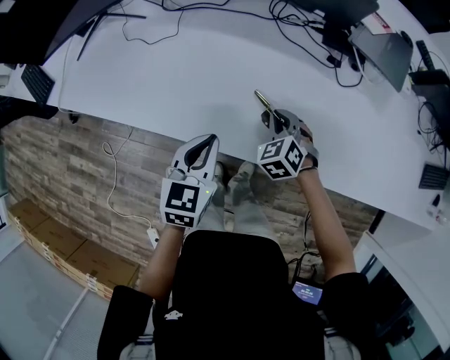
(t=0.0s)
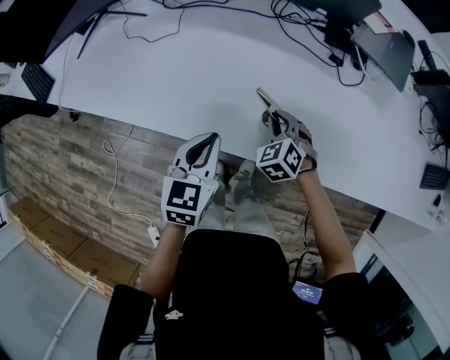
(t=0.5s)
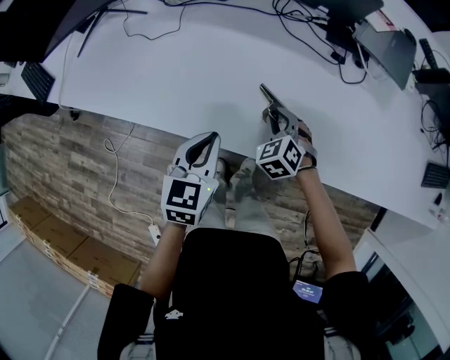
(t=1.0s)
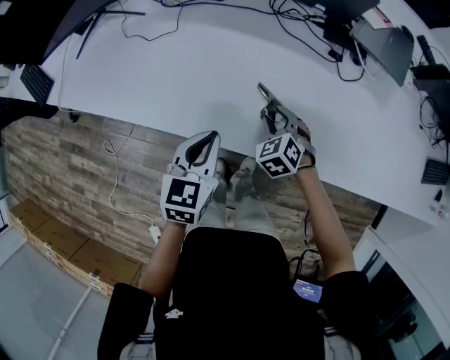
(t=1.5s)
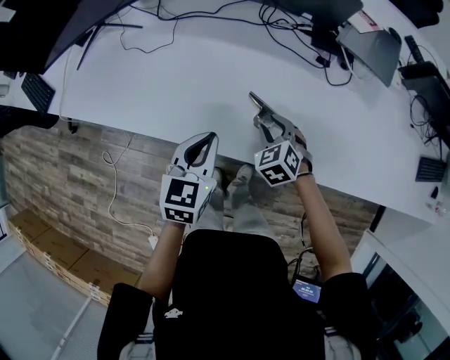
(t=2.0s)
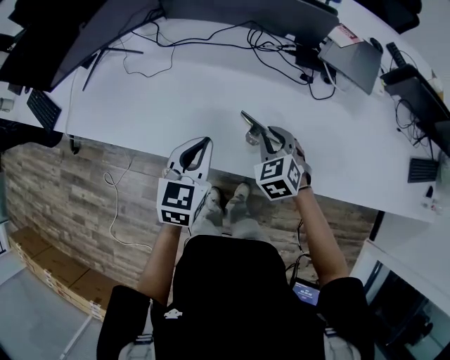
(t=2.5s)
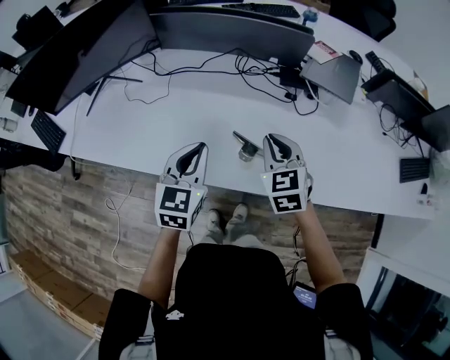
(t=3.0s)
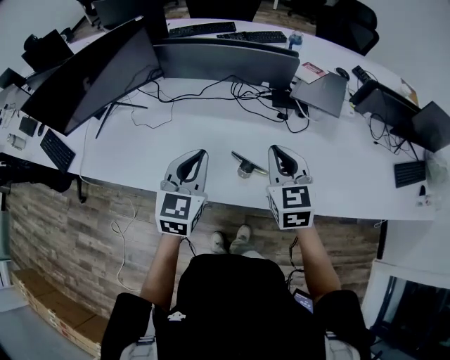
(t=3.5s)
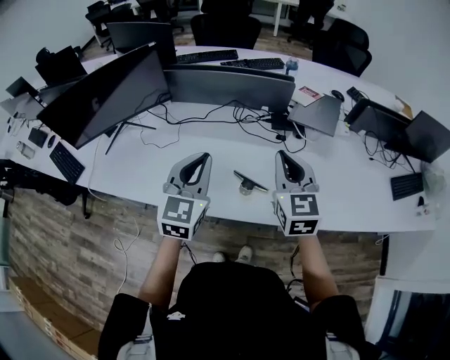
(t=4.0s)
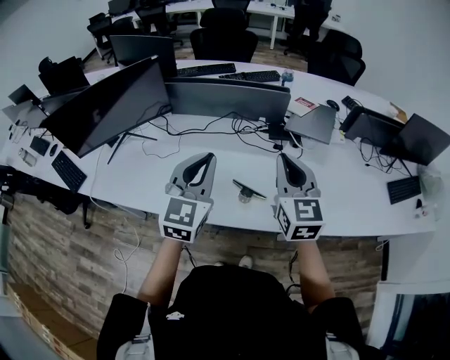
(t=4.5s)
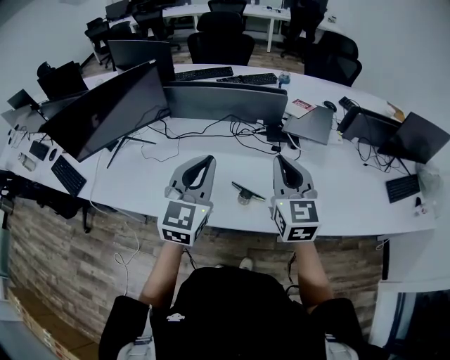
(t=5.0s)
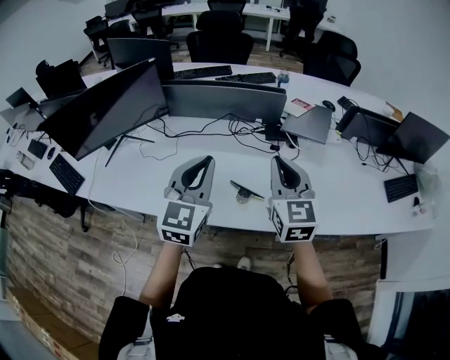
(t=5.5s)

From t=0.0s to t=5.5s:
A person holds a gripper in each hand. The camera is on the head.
From t=0.0s to t=2.0s: The right gripper opens.
From t=2.0s to t=3.5s: The right gripper goes approximately 30 cm upward, tilts its fingers roughly 30 degrees upward, and closes its fingers, while the left gripper shifts about 20 cm upward.
From t=3.5s to t=5.5s: The grippers both shift upward by about 10 cm.

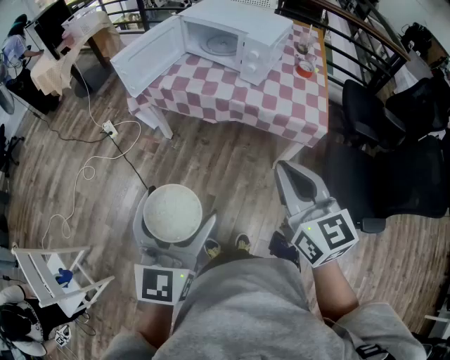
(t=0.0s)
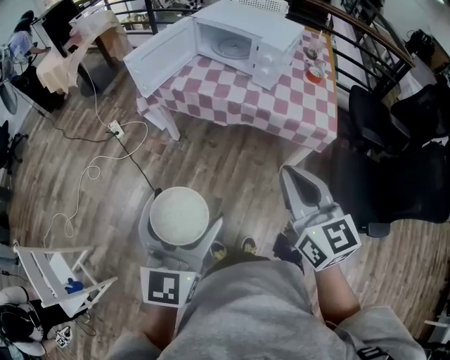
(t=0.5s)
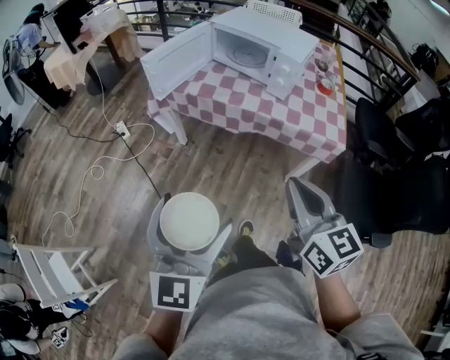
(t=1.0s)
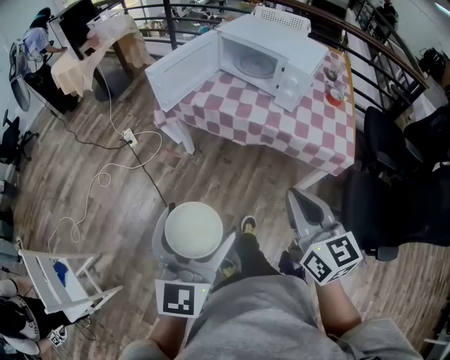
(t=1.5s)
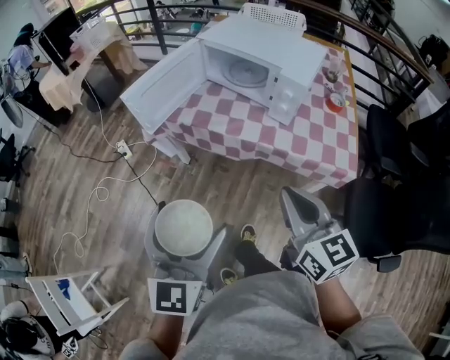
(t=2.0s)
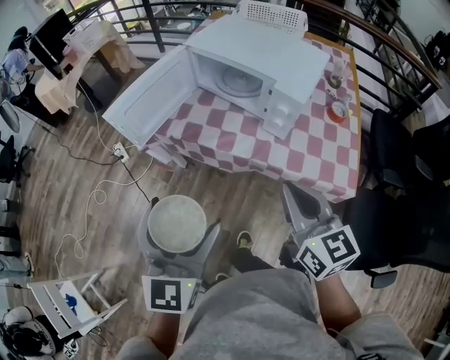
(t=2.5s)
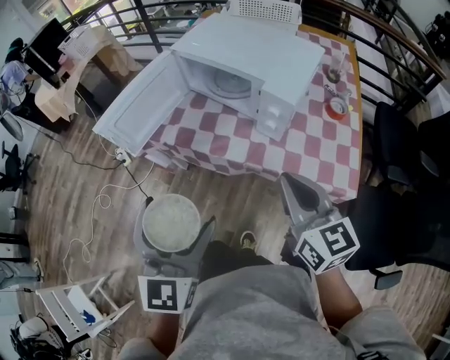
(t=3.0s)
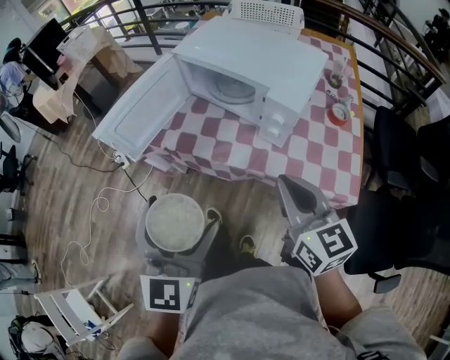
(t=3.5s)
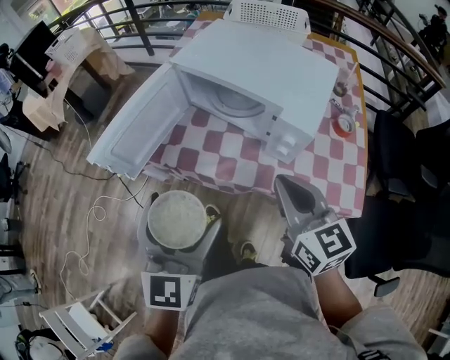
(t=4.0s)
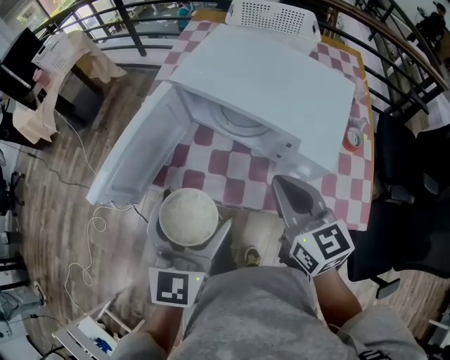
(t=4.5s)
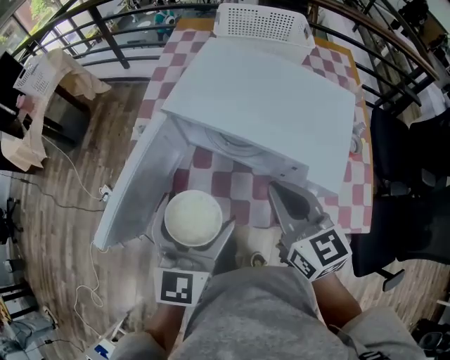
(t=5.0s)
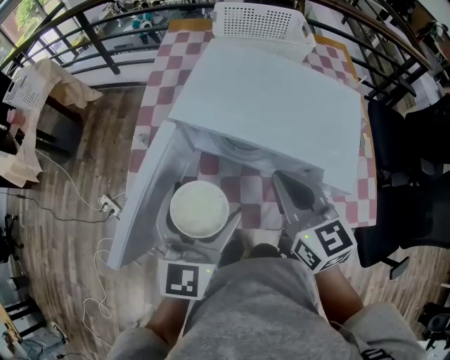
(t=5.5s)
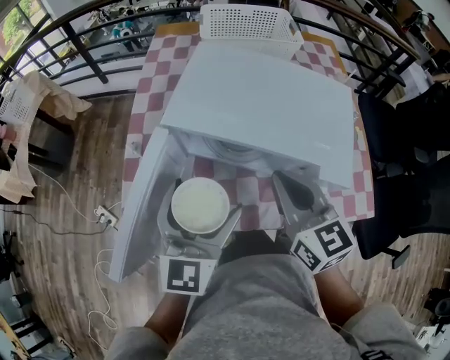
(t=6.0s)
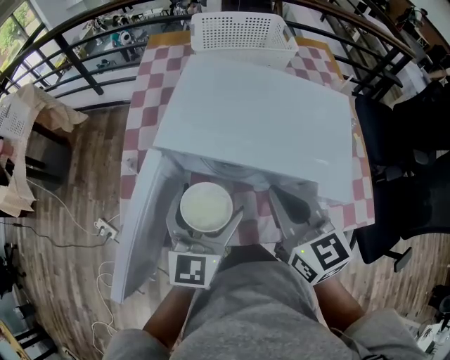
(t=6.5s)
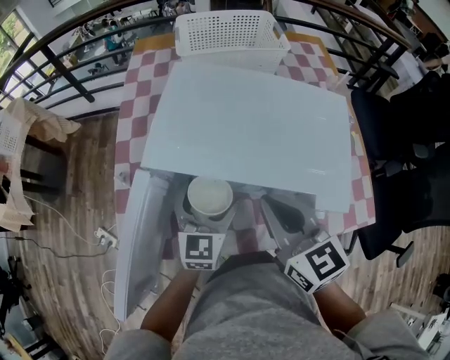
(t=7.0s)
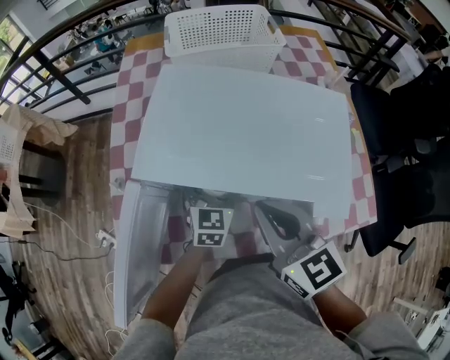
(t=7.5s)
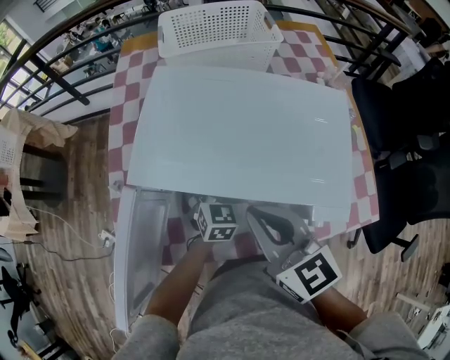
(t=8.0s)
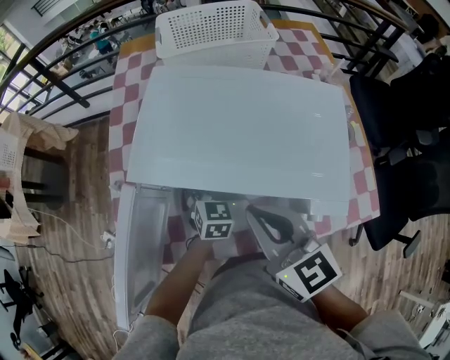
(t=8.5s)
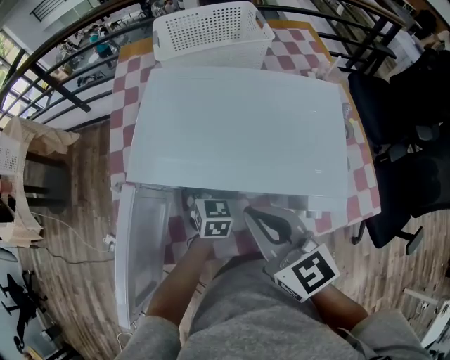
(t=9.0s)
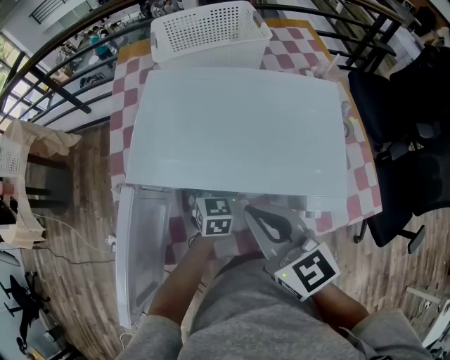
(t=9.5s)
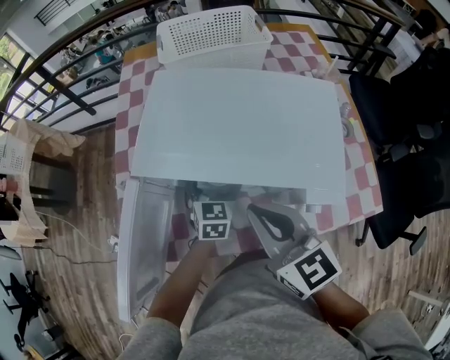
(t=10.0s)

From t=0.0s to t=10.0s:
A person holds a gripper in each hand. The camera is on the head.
From t=0.0s to t=2.0s: Both grippers move forward, roughly 15 cm.
From t=2.0s to t=4.0s: The grippers both shift forward by about 25 cm.
From t=4.0s to t=6.0s: The right gripper heads forward and to the left, covering about 20 cm, while the left gripper heads forward, covering some 25 cm, and rotates some 20 degrees.
From t=6.0s to t=8.0s: The left gripper is displaced downward, forward and to the right by approximately 25 cm, and turns by about 30 degrees.
From t=8.0s to t=10.0s: The grippers make only small movements.

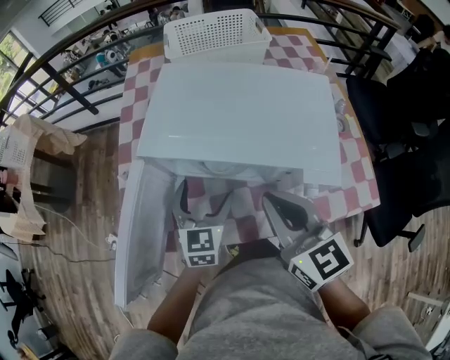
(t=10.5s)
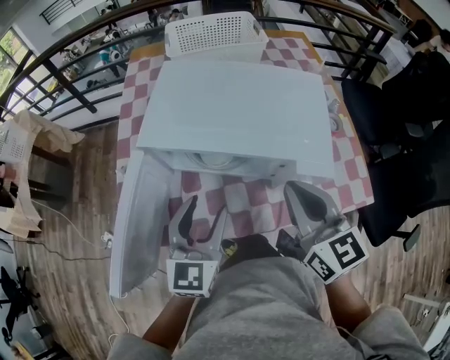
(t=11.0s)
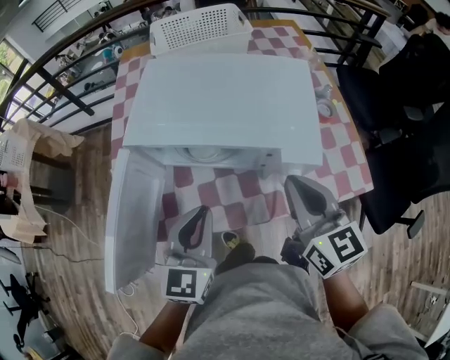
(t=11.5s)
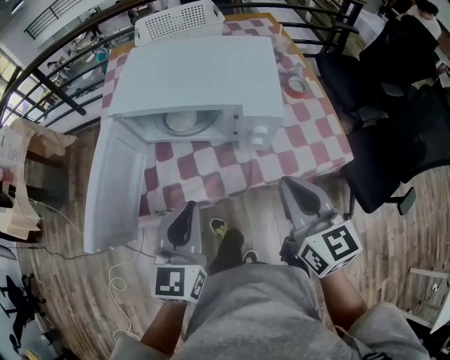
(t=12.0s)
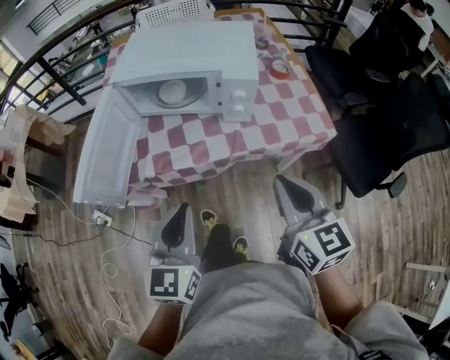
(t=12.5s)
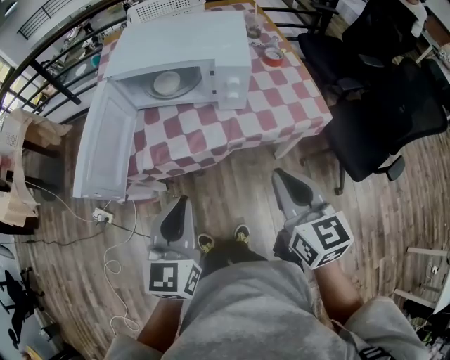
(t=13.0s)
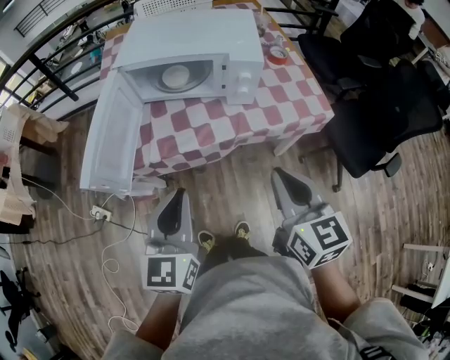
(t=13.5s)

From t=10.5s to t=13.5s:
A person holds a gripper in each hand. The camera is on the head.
From t=10.5s to t=12.0s: The right gripper is displaced backward and to the right by approximately 20 cm, while the left gripper is displaced backward and upward by about 25 cm, and closes its fingers.
From t=12.0s to t=13.5s: Both grippers travel together backward, approximately 15 cm.

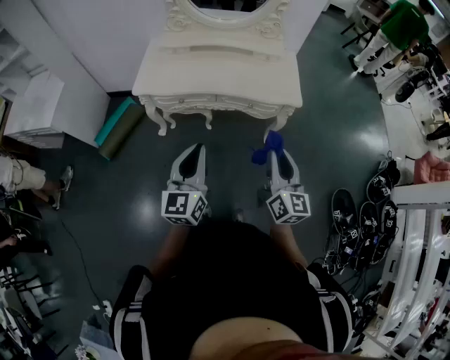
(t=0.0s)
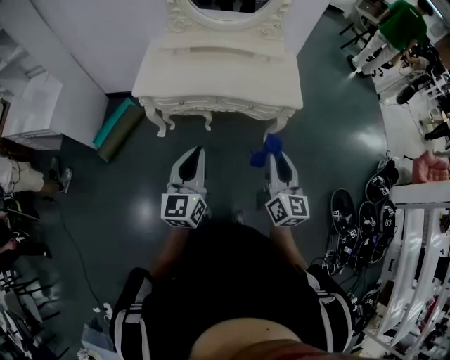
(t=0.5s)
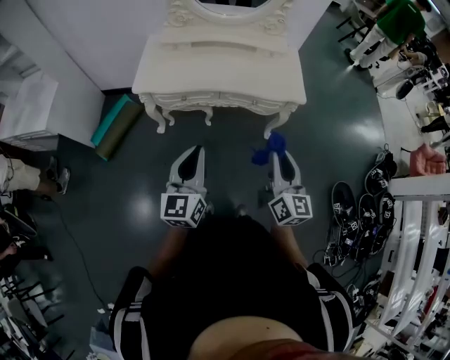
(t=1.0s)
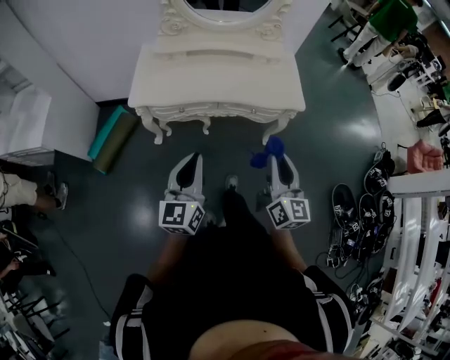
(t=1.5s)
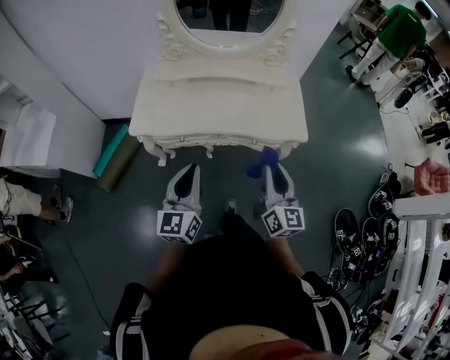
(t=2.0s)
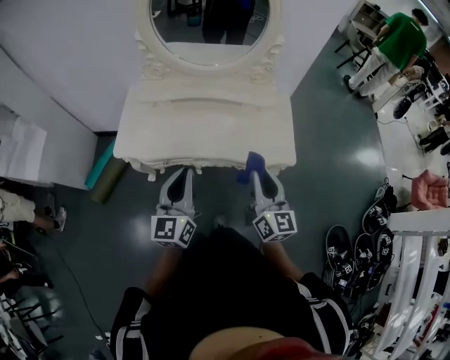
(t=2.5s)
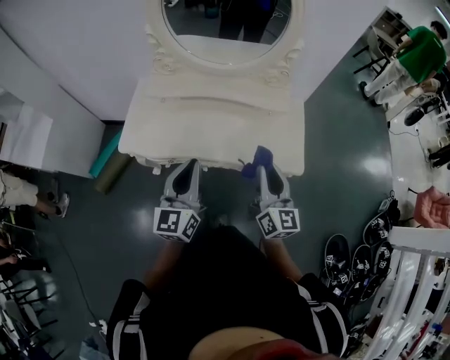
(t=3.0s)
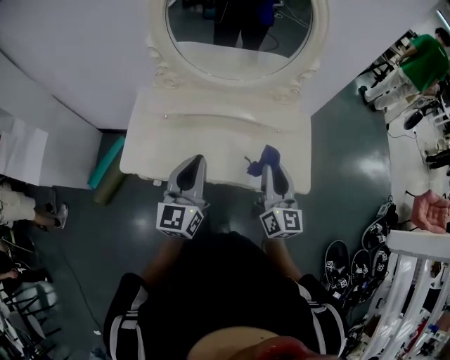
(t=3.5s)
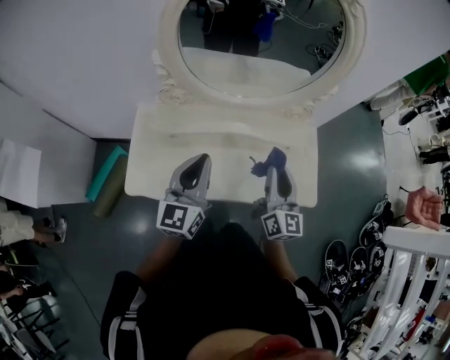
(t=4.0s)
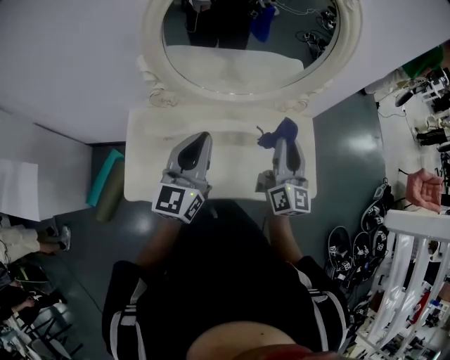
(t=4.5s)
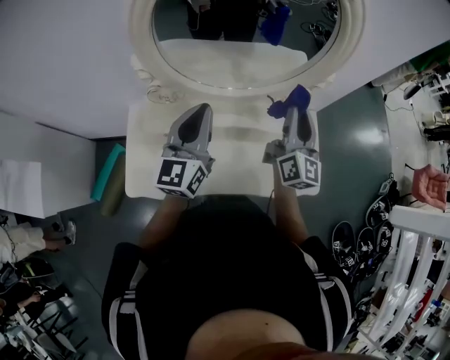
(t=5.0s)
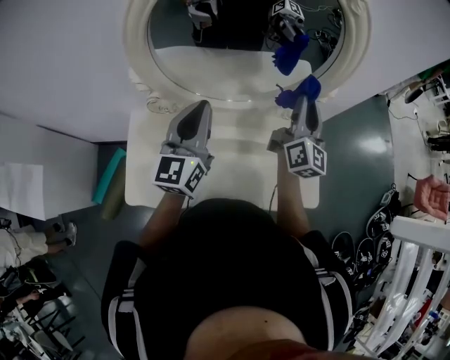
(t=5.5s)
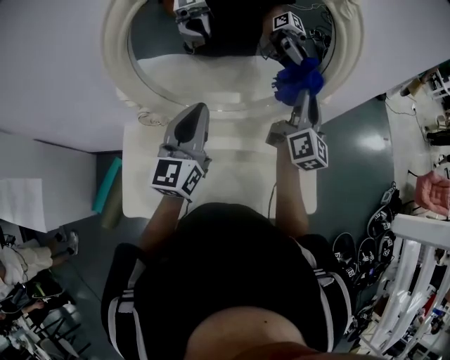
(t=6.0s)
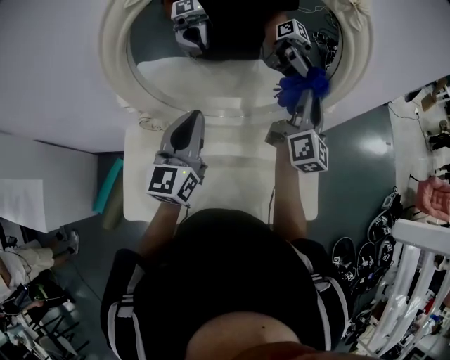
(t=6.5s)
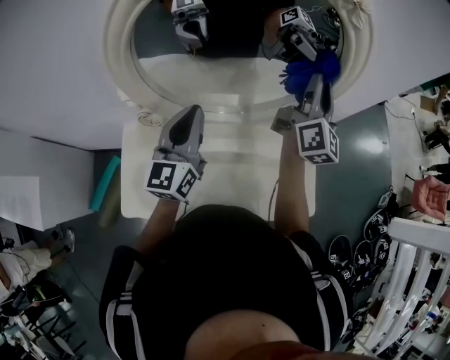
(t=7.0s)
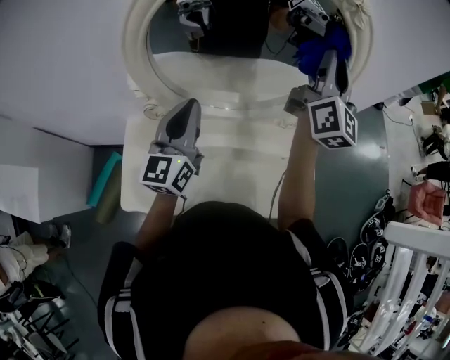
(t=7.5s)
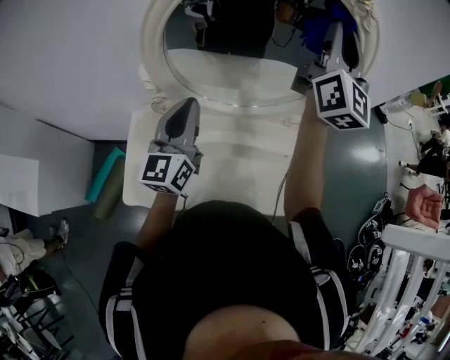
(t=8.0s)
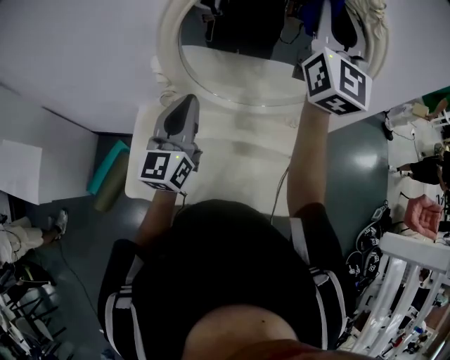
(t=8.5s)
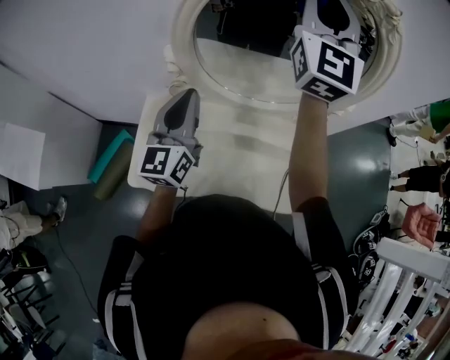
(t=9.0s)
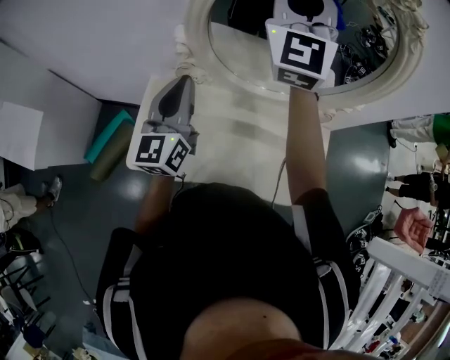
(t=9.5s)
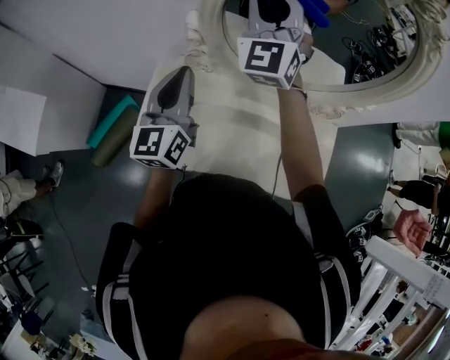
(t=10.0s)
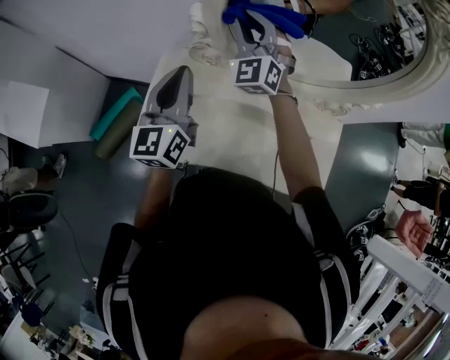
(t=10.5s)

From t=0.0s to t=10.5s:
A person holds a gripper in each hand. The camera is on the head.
From t=0.0s to t=2.0s: The grippers both shift forward by some 15 cm.
From t=2.0s to t=4.0s: The grippers both shift forward by approximately 35 cm.
From t=4.0s to t=6.5s: The grippers both shift forward by approximately 25 cm. The right gripper changes its angle by some 20 degrees.
From t=6.5s to t=8.5s: The left gripper travels backward and to the left by about 10 cm. The right gripper shifts approximately 30 cm upward and to the left, and swivels about 40 degrees.
From t=8.5s to t=10.5s: The right gripper travels downward and to the left by some 35 cm, and rotates roughly 50 degrees. Meanwhile the left gripper is displaced to the left by some 10 cm.
